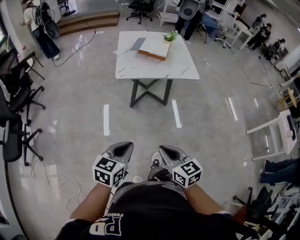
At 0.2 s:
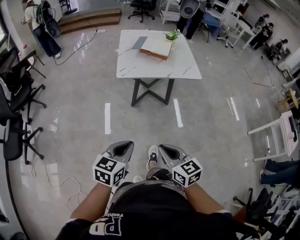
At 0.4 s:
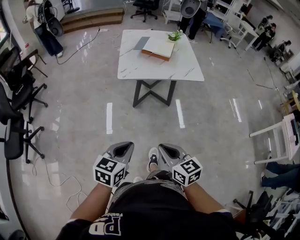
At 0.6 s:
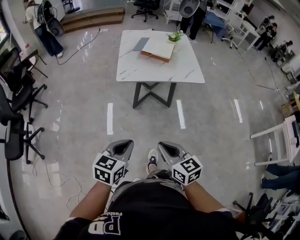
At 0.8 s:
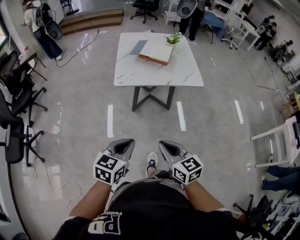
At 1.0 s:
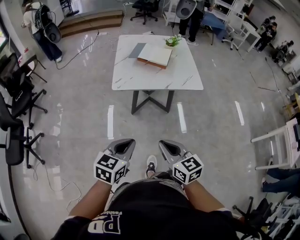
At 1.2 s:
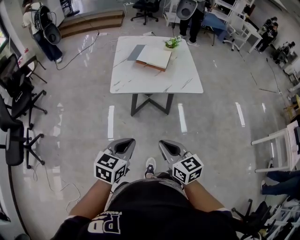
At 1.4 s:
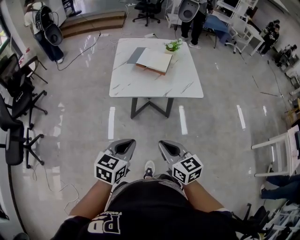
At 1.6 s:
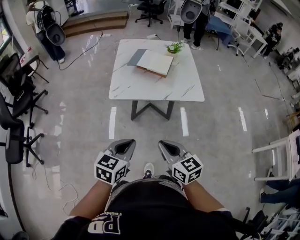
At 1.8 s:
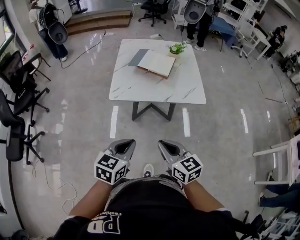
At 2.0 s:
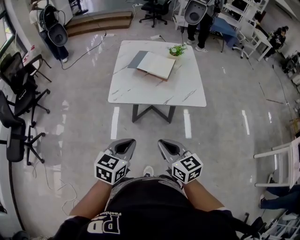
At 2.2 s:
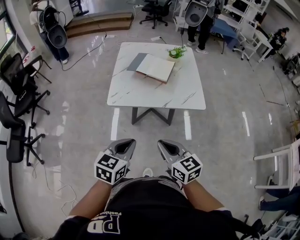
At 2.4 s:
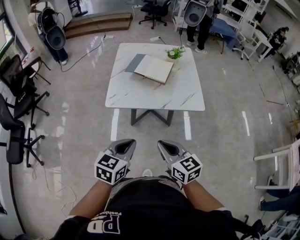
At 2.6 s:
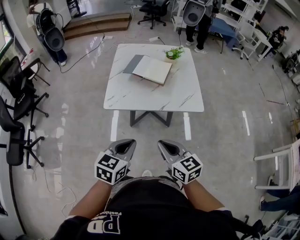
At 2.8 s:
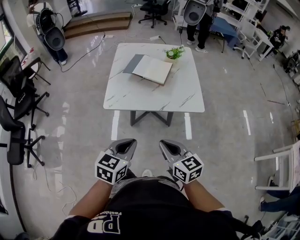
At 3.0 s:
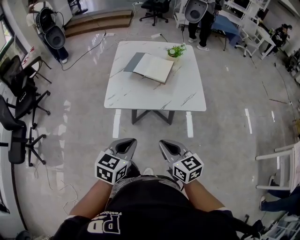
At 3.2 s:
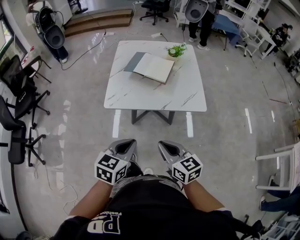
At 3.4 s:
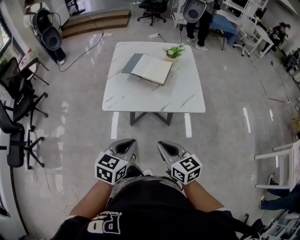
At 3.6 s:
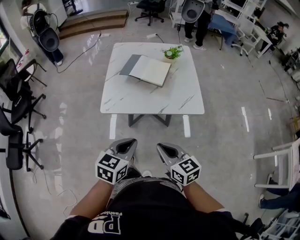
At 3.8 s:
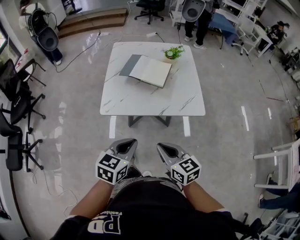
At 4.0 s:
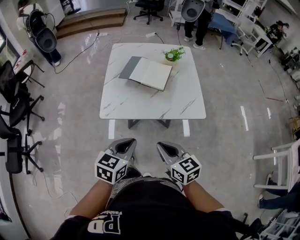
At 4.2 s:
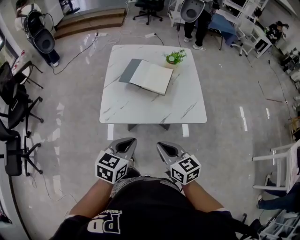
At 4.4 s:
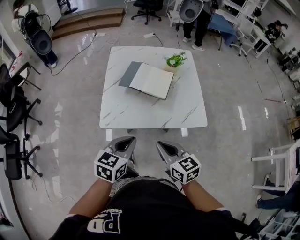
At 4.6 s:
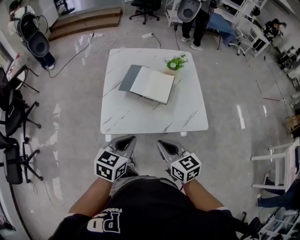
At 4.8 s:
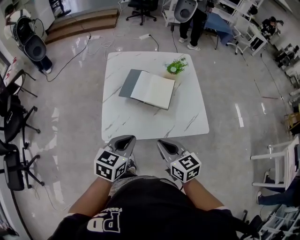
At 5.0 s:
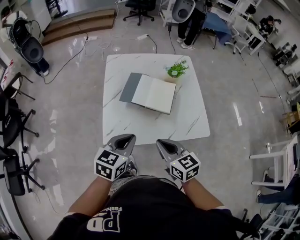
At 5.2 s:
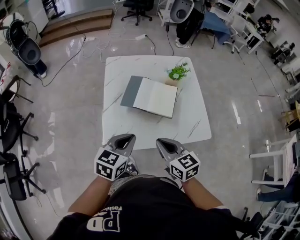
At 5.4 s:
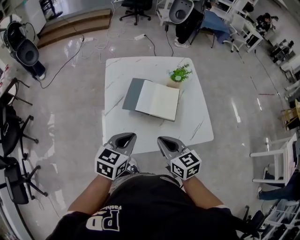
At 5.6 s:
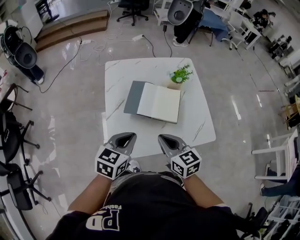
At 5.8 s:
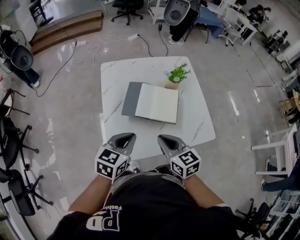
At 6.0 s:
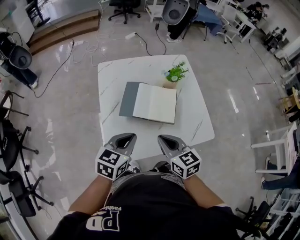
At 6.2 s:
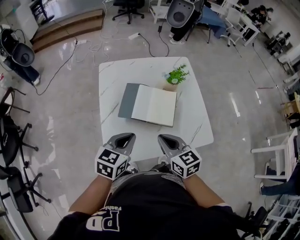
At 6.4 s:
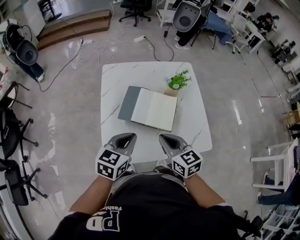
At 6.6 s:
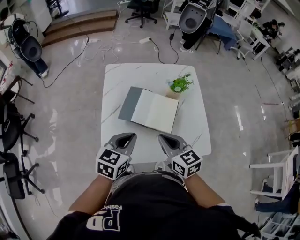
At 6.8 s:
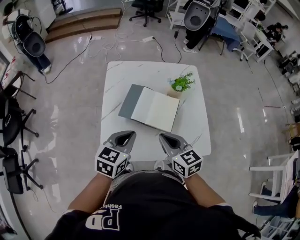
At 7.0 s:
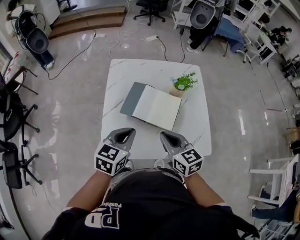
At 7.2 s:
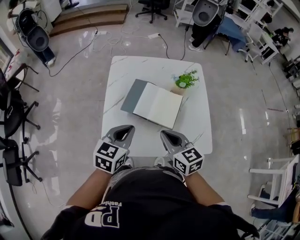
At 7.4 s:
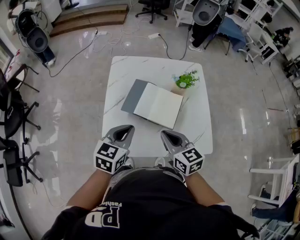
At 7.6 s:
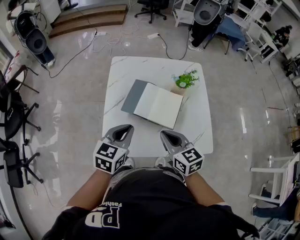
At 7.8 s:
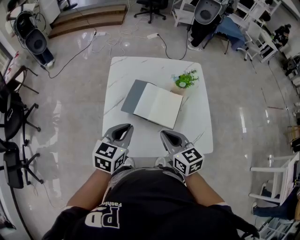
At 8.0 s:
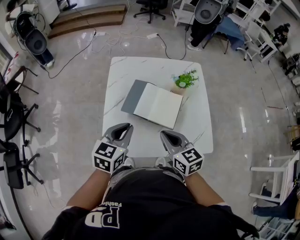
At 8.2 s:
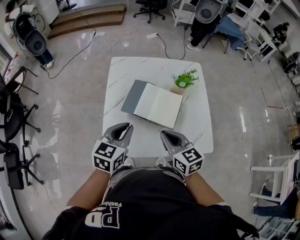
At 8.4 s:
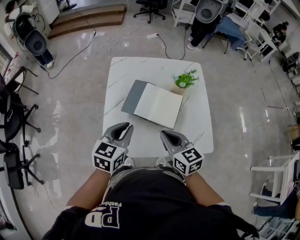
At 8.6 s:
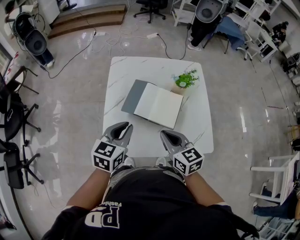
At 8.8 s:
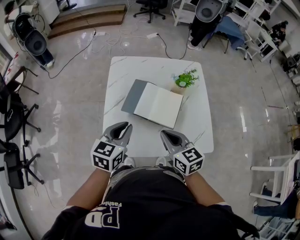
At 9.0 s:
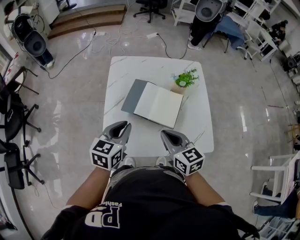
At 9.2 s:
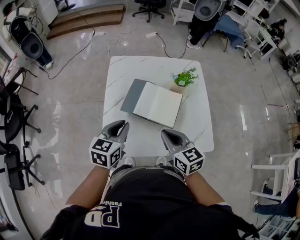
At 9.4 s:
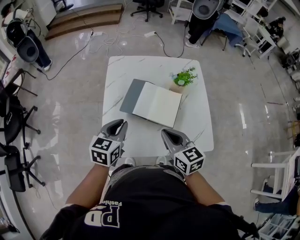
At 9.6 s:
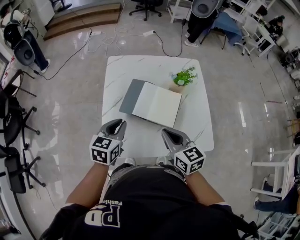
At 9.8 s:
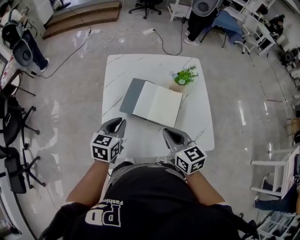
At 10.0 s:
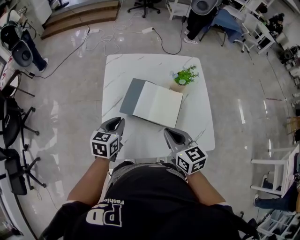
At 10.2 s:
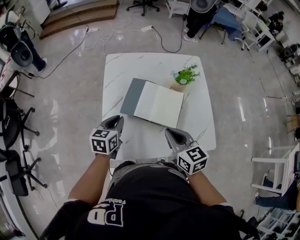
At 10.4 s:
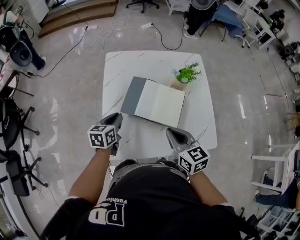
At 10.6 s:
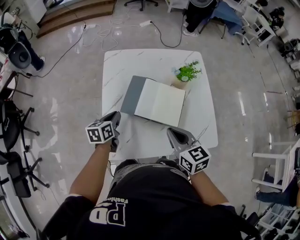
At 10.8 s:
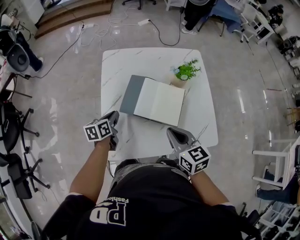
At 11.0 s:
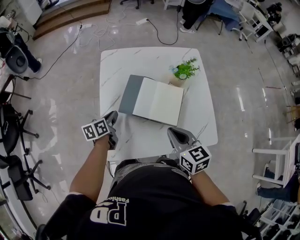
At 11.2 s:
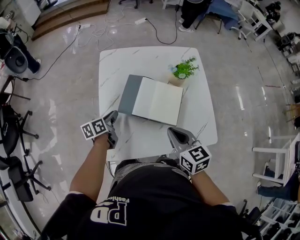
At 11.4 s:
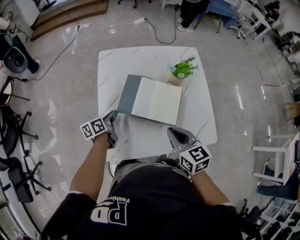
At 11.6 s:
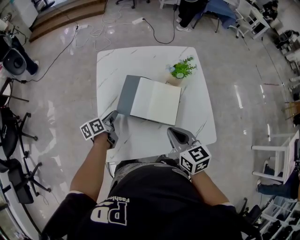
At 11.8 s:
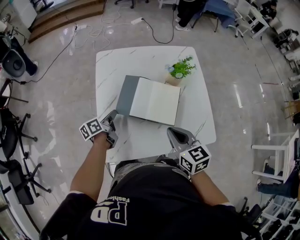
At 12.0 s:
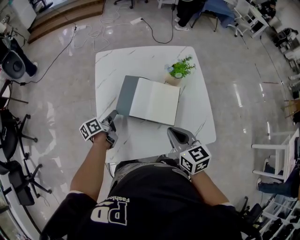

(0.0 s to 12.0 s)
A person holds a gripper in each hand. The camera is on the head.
0.0 s - 1.6 s: The right gripper travels forward by some 20 cm, while the left gripper travels forward and to the right by some 20 cm.
1.6 s - 3.0 s: The right gripper is displaced forward by roughly 10 cm, while the left gripper goes roughly 10 cm forward and to the right.
3.0 s - 4.4 s: Both grippers travel together forward, approximately 15 cm.
4.4 s - 6.0 s: The grippers both shift forward by roughly 20 cm.
6.0 s - 9.0 s: The grippers stay close to where they were, moving slightly.
9.0 s - 10.4 s: The left gripper heads downward, forward and to the left, covering about 15 cm.
10.4 s - 12.0 s: The left gripper heads downward, covering some 5 cm, and changes its angle by approximately 40 degrees.

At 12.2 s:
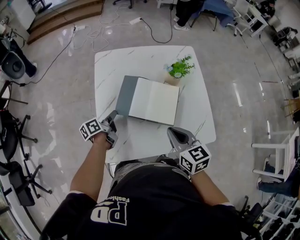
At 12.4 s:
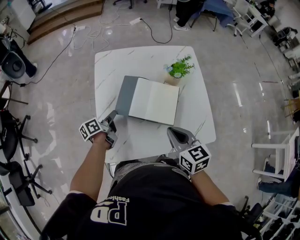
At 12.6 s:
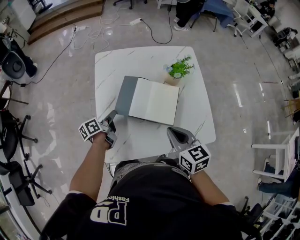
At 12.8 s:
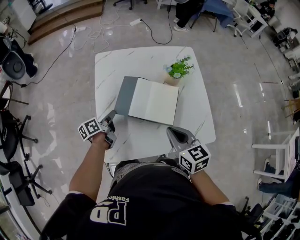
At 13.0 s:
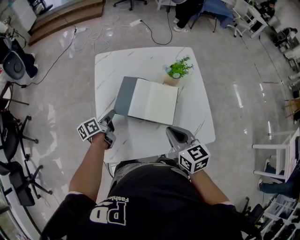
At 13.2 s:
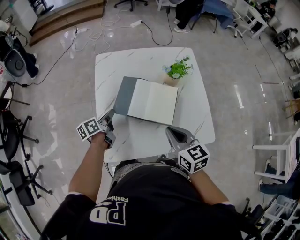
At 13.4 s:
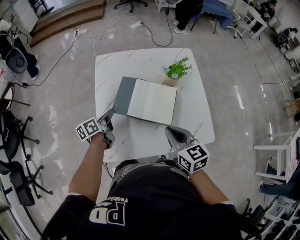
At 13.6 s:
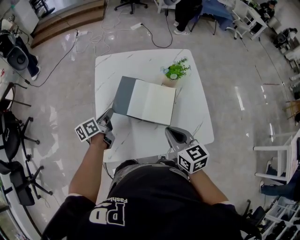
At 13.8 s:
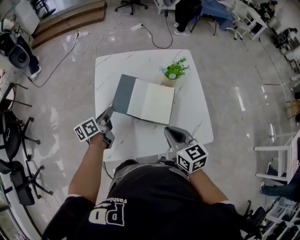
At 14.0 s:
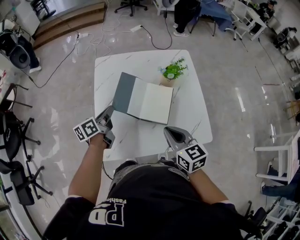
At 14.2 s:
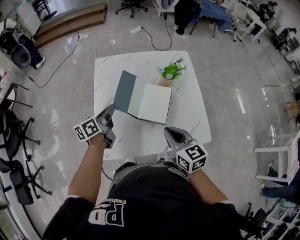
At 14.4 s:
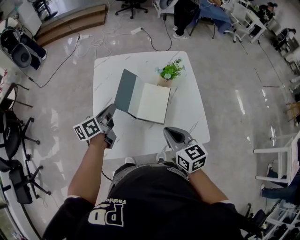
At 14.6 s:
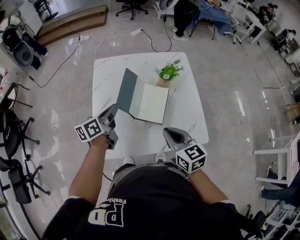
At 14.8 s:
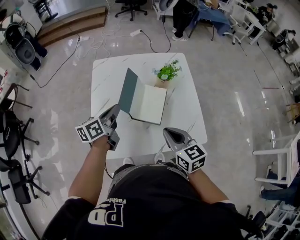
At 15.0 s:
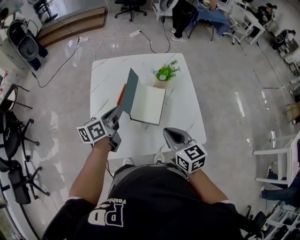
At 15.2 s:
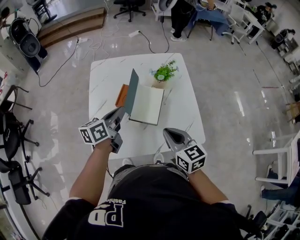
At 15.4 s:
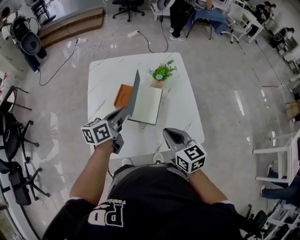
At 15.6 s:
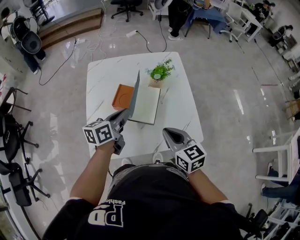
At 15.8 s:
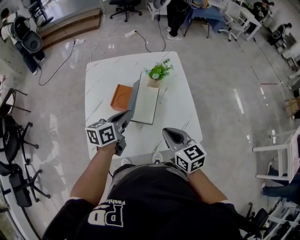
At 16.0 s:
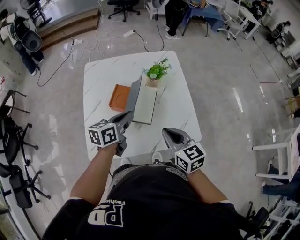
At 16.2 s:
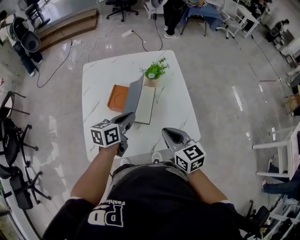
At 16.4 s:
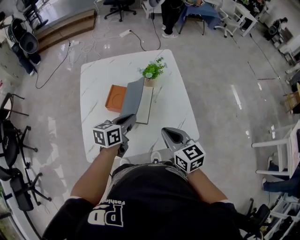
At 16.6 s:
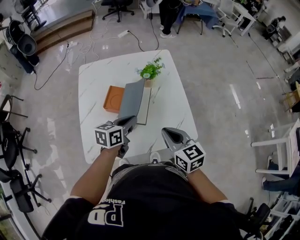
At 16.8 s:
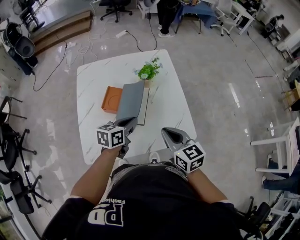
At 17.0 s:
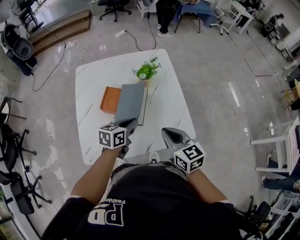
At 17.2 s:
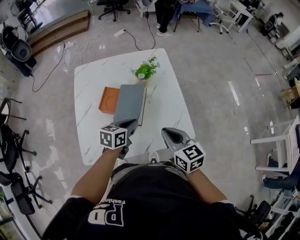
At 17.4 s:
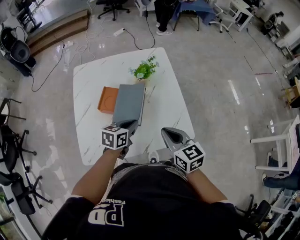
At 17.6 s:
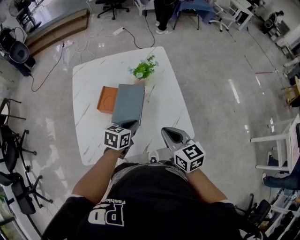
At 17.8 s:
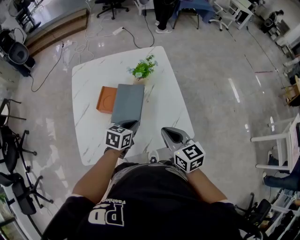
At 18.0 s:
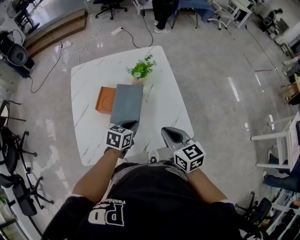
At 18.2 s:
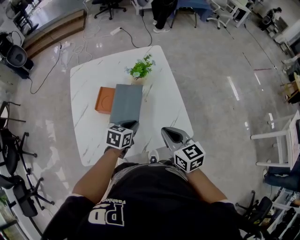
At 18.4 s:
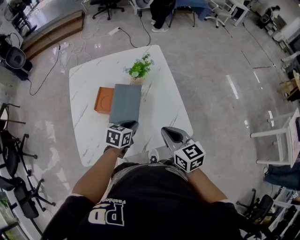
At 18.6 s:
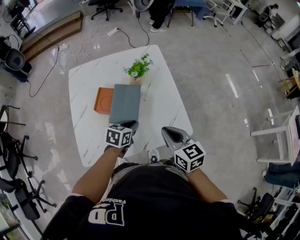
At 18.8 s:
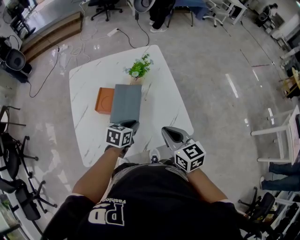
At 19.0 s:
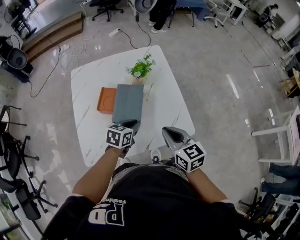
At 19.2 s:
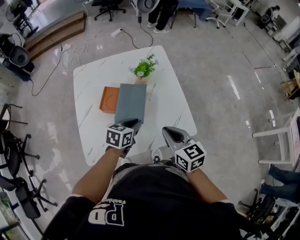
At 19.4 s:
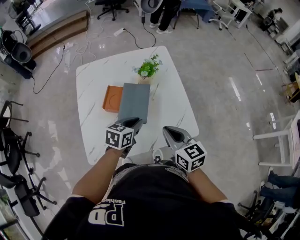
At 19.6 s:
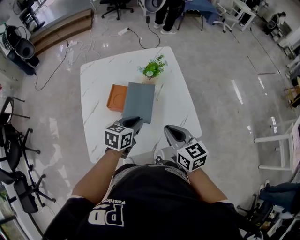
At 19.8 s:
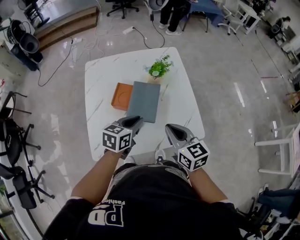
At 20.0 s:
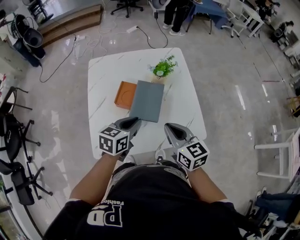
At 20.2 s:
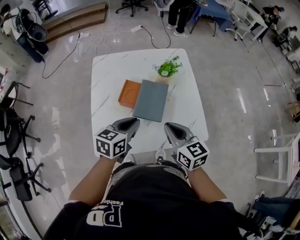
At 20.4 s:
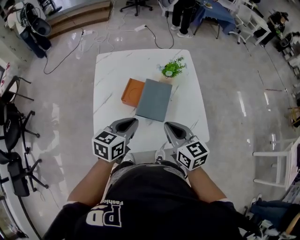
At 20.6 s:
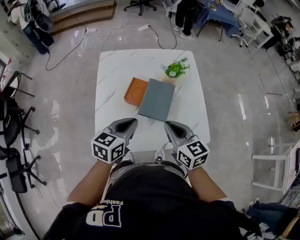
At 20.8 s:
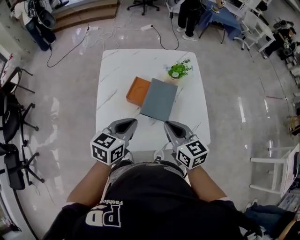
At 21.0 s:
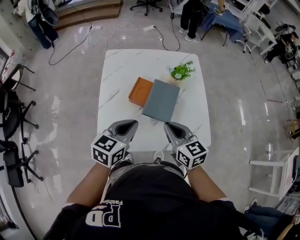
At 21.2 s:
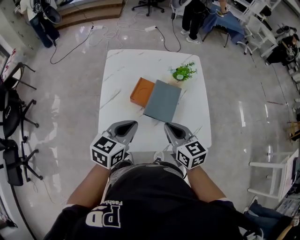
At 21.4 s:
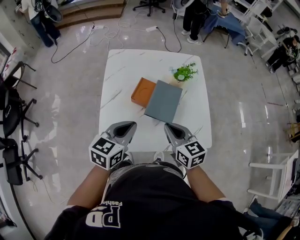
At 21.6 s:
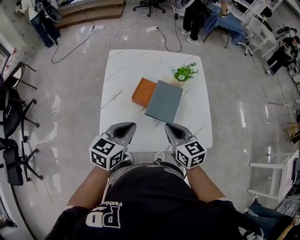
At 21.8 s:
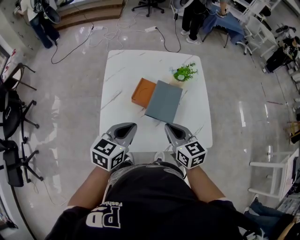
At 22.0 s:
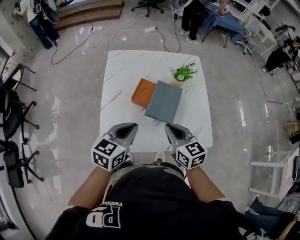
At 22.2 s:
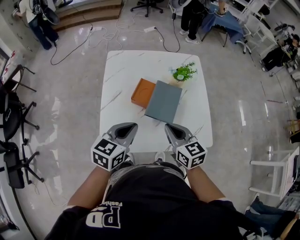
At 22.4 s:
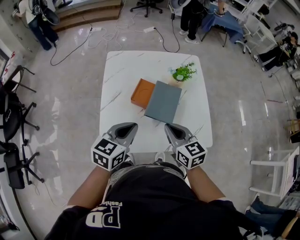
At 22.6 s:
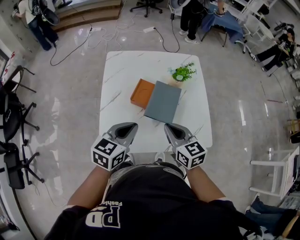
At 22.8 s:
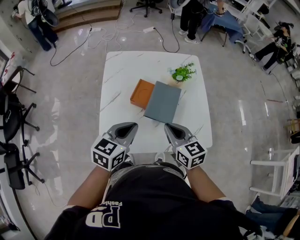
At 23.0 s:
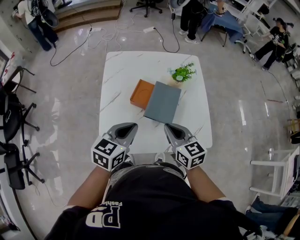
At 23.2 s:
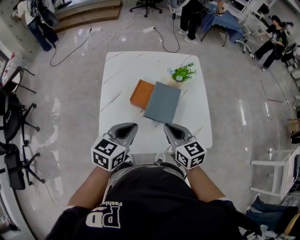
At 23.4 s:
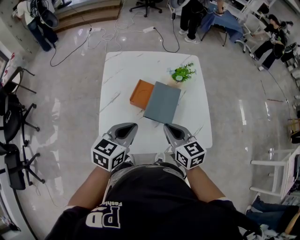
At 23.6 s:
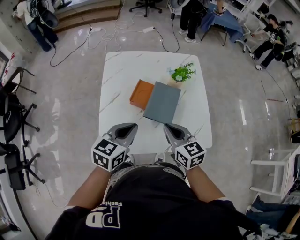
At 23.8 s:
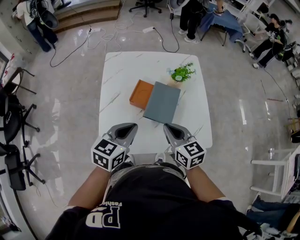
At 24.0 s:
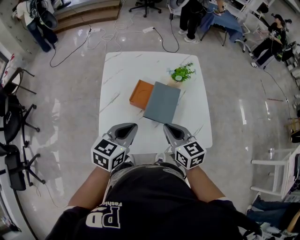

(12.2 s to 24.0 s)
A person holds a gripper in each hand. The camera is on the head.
12.2 s - 13.6 s: The left gripper travels upward by about 5 cm.
13.6 s - 15.2 s: The left gripper heads to the right and upward, covering some 15 cm, while the right gripper shifts roughly 5 cm to the right.
15.2 s - 16.6 s: The left gripper shifts about 15 cm to the right and downward, and changes its angle by approximately 20 degrees.
16.6 s - 18.2 s: The left gripper travels downward by approximately 5 cm, and rotates approximately 20 degrees.
18.2 s - 19.6 s: The left gripper heads upward, covering roughly 5 cm.
19.6 s - 21.0 s: The left gripper heads to the left, upward and backward, covering approximately 15 cm; the right gripper is displaced to the left by approximately 10 cm.
21.0 s - 22.6 s: The grippers move only a little.
22.6 s - 24.0 s: Neither gripper changes place.
